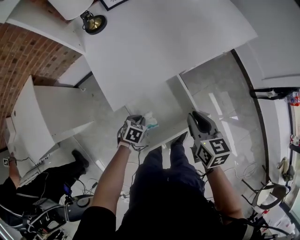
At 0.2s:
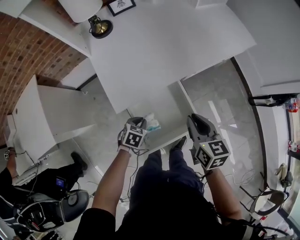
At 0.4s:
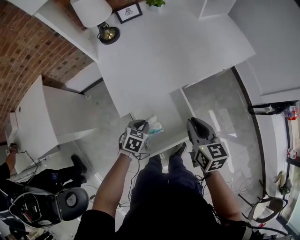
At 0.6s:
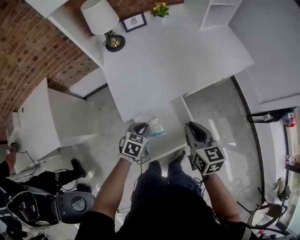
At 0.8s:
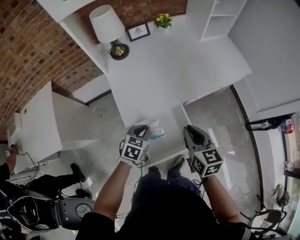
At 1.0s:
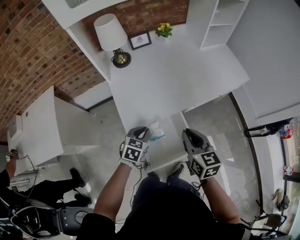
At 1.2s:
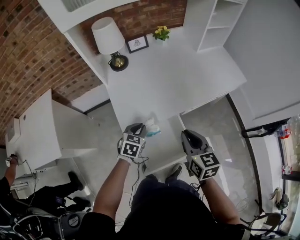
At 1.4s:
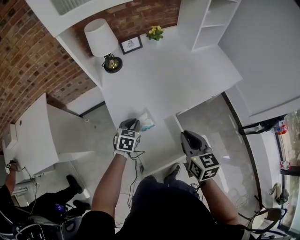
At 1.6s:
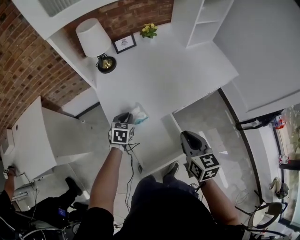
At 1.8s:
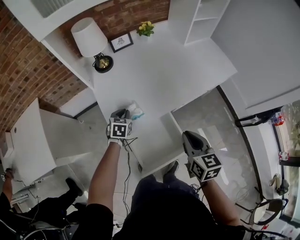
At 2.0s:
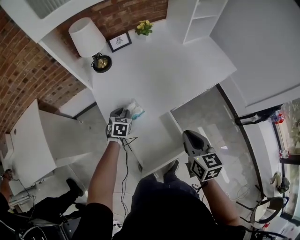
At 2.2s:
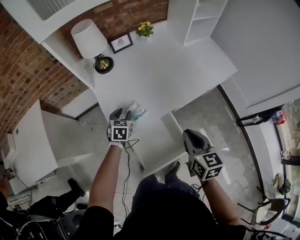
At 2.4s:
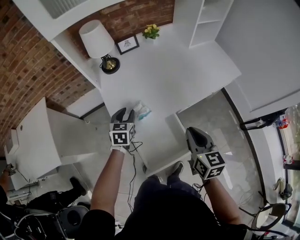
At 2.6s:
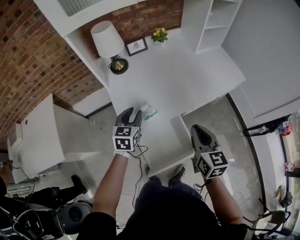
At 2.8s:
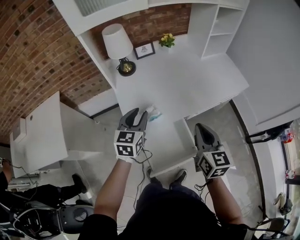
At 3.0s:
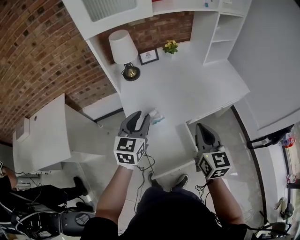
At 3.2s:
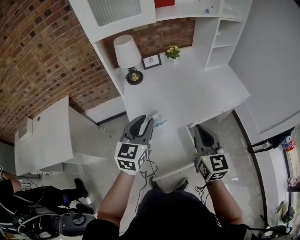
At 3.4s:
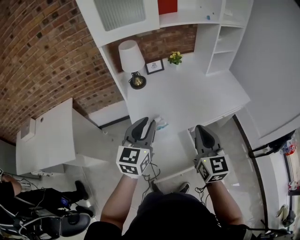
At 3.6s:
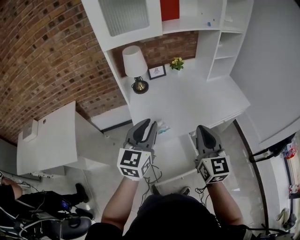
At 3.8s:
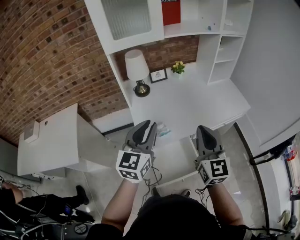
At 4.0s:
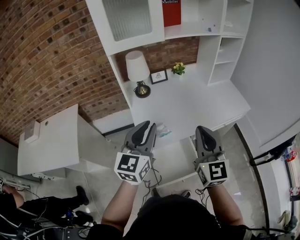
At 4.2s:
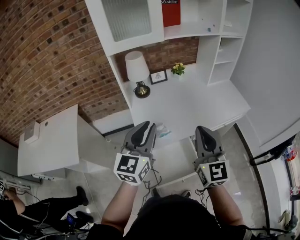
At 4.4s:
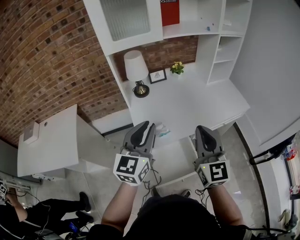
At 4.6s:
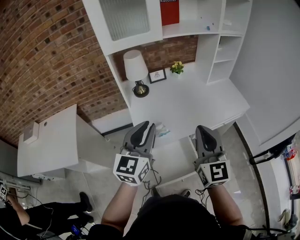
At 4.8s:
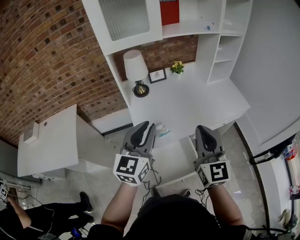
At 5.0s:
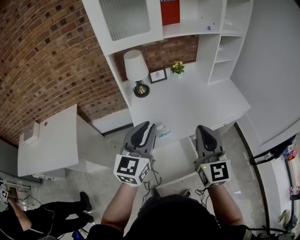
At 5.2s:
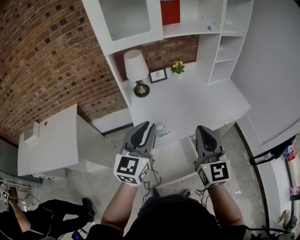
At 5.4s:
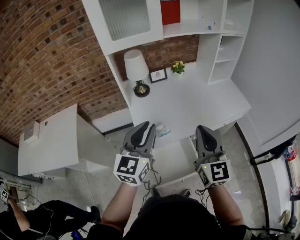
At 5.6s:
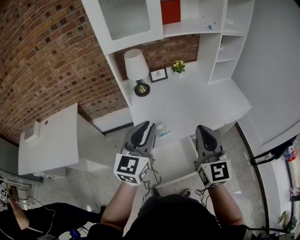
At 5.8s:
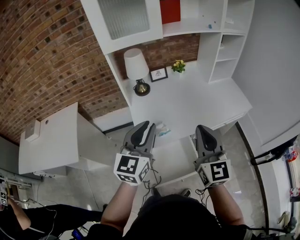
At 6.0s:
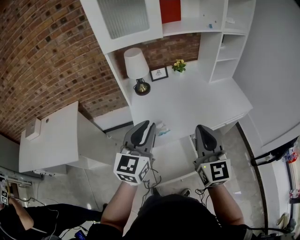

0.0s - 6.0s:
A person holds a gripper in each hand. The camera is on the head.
0.0s - 1.6s: The left gripper goes some 25 cm forward and upward, and swivels about 30 degrees. The right gripper moves upward, roughly 10 cm.
1.6s - 3.0s: The right gripper moves upward, approximately 10 cm; the left gripper heads upward, covering some 25 cm, and rotates some 30 degrees.
3.0s - 4.4s: The right gripper is displaced upward by approximately 10 cm, and swivels approximately 20 degrees. The left gripper moves upward and backward, about 15 cm.
4.4s - 6.0s: The grippers move only a little.

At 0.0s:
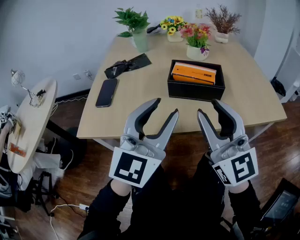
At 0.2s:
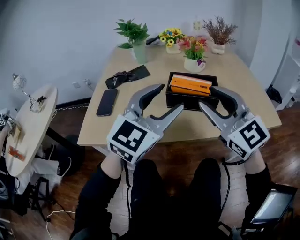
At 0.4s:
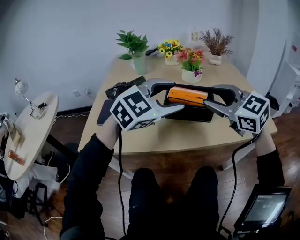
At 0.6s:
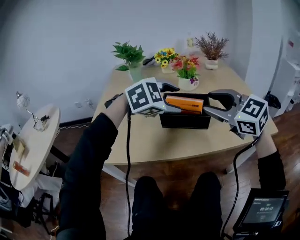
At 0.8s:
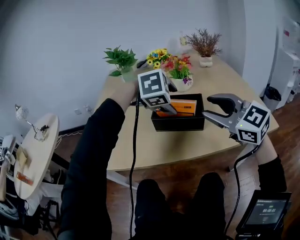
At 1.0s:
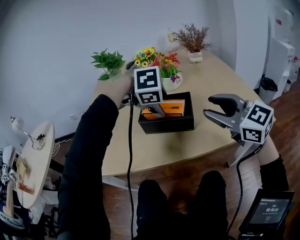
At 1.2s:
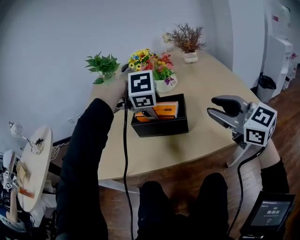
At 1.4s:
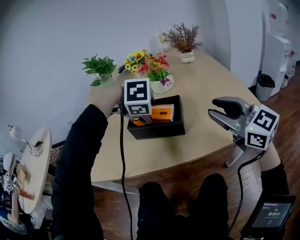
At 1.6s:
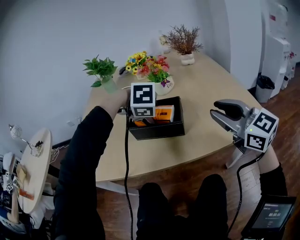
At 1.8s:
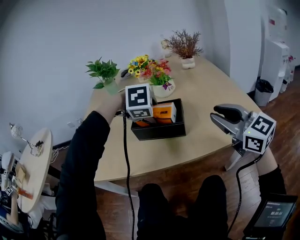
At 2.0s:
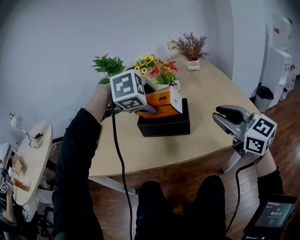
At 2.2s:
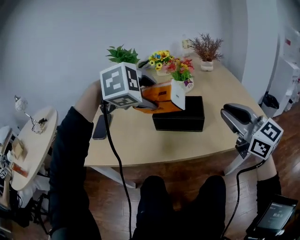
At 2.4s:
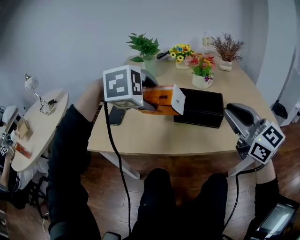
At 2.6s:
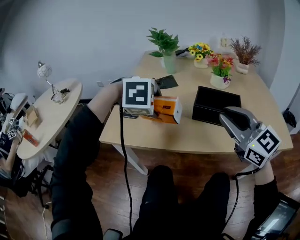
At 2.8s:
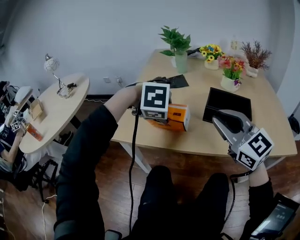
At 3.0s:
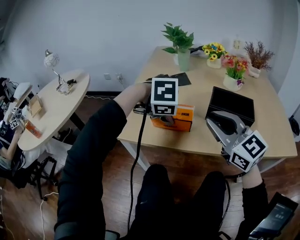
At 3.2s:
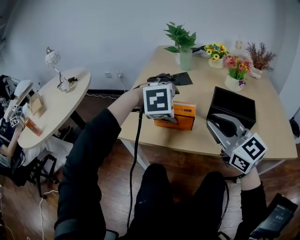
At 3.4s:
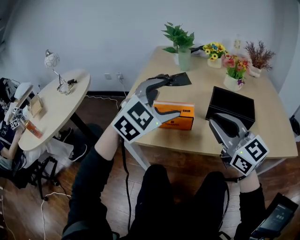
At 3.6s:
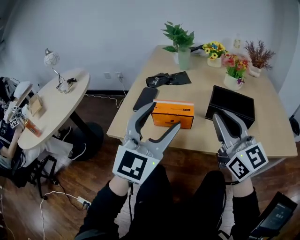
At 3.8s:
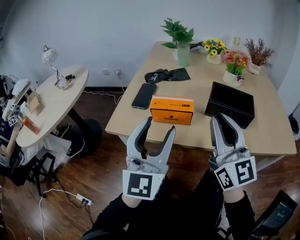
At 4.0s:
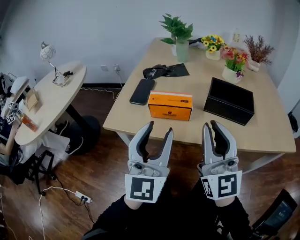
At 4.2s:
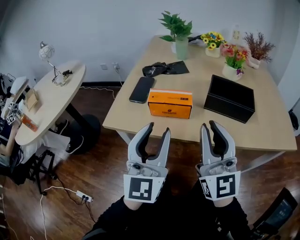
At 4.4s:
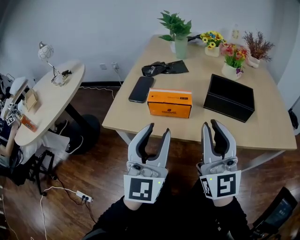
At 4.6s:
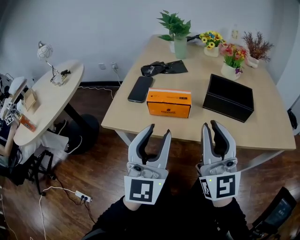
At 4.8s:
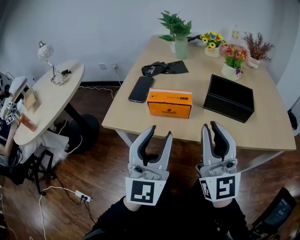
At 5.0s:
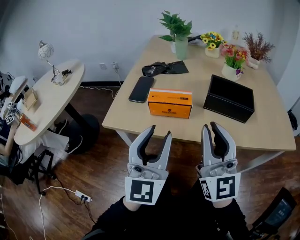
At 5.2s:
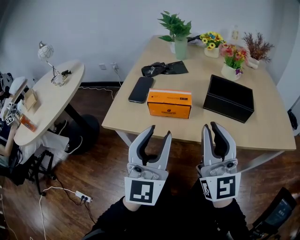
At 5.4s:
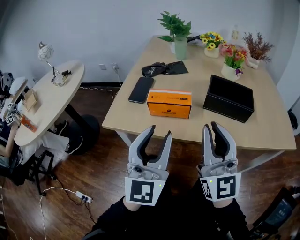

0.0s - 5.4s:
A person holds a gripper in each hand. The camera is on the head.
0.0s - 1.4s: The left gripper moves approximately 20 cm, and points its fingers roughly 90 degrees further downward. The right gripper moves about 20 cm, and swivels some 20 degrees.
1.4s - 2.8s: The right gripper ends up about 25 cm from where it was. The left gripper goes upward and returns, some 10 cm each way.
2.8s - 4.0s: The left gripper shifts by some 15 cm, tips its fingers upward by approximately 90 degrees, and opens, then closes again. The right gripper moves approximately 5 cm, and swivels about 30 degrees.
4.0s - 5.4s: The grippers stay close to where they were, moving slightly.

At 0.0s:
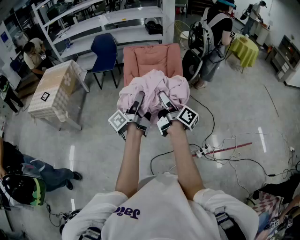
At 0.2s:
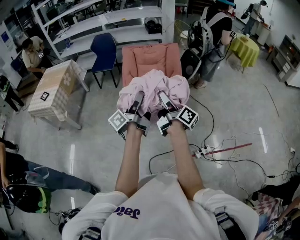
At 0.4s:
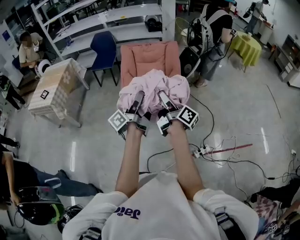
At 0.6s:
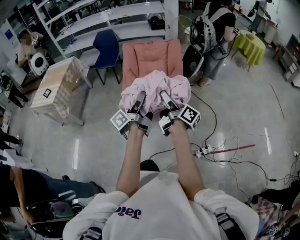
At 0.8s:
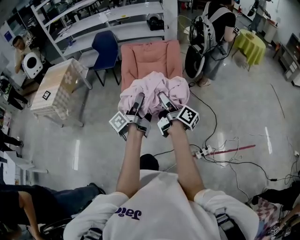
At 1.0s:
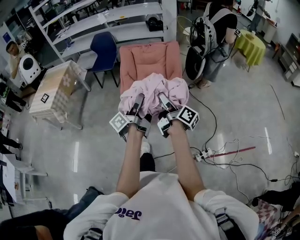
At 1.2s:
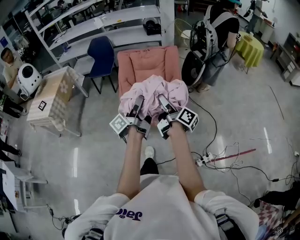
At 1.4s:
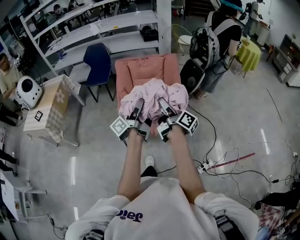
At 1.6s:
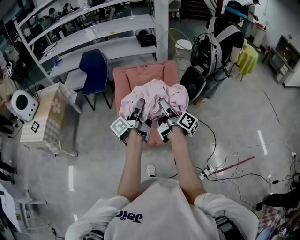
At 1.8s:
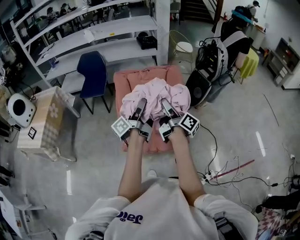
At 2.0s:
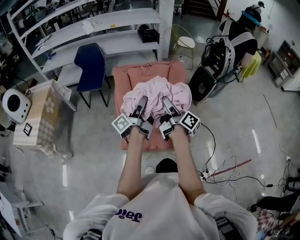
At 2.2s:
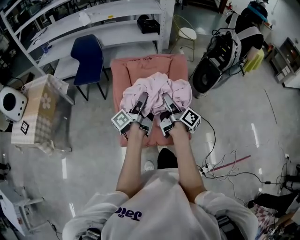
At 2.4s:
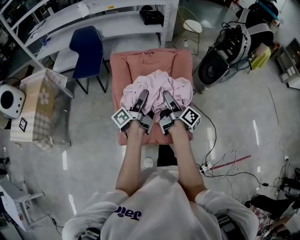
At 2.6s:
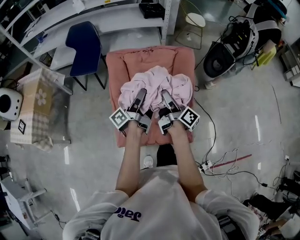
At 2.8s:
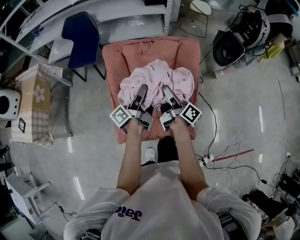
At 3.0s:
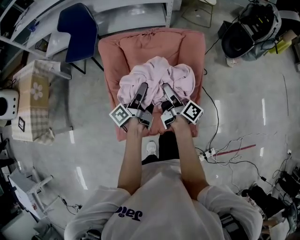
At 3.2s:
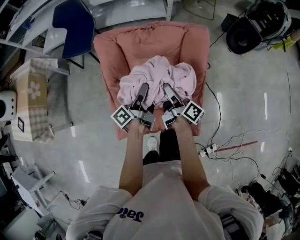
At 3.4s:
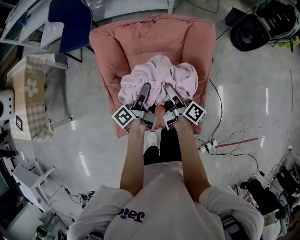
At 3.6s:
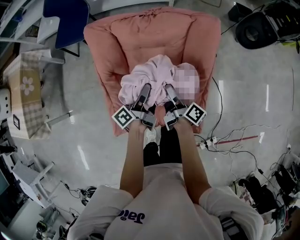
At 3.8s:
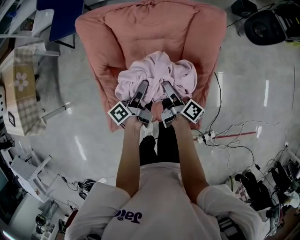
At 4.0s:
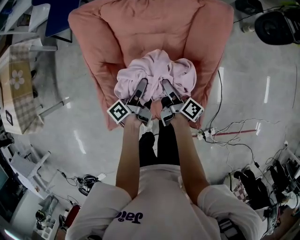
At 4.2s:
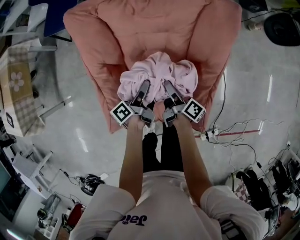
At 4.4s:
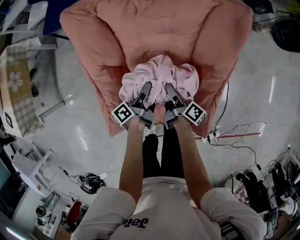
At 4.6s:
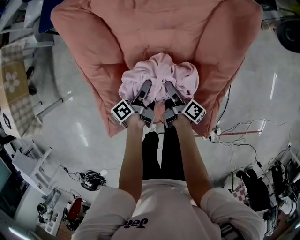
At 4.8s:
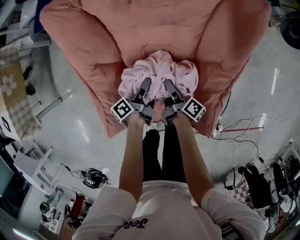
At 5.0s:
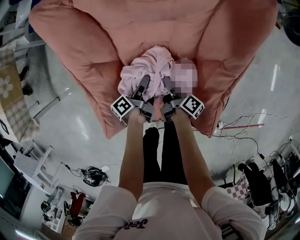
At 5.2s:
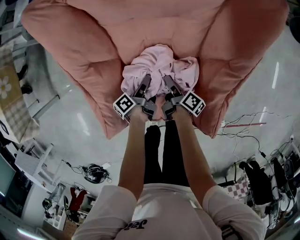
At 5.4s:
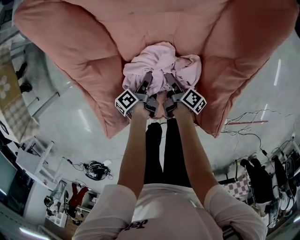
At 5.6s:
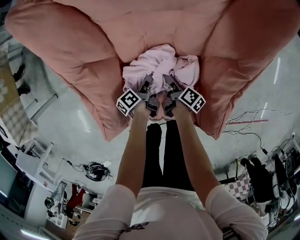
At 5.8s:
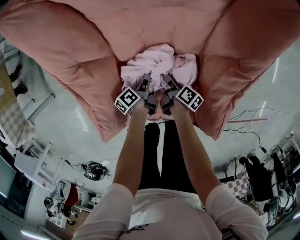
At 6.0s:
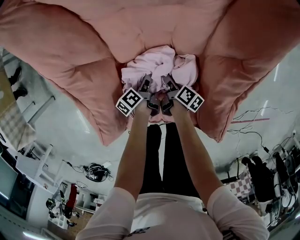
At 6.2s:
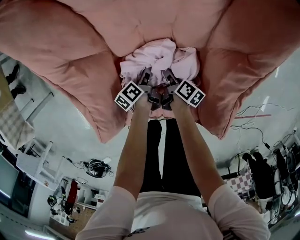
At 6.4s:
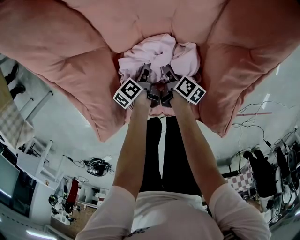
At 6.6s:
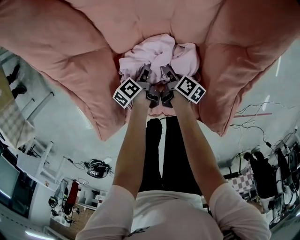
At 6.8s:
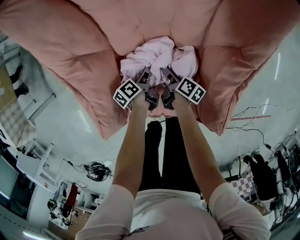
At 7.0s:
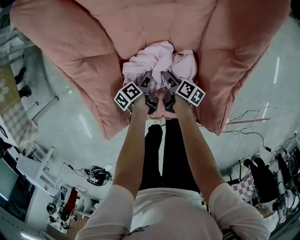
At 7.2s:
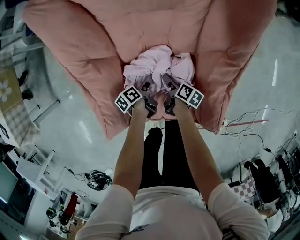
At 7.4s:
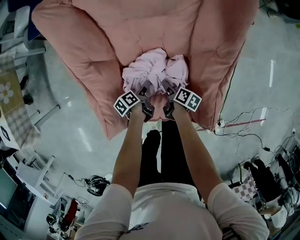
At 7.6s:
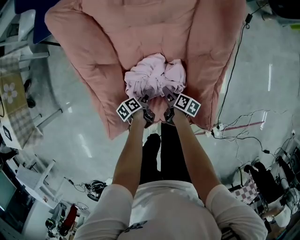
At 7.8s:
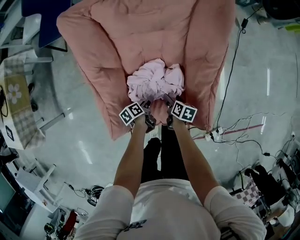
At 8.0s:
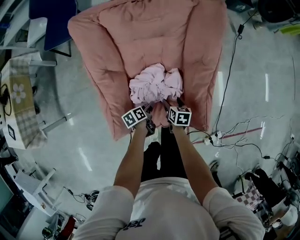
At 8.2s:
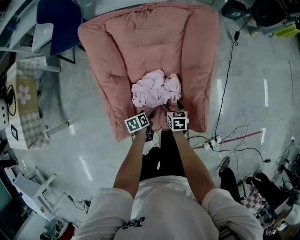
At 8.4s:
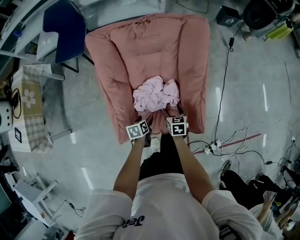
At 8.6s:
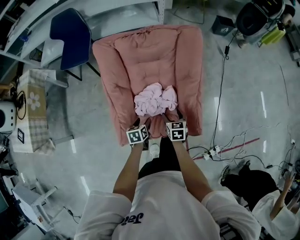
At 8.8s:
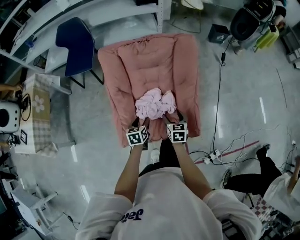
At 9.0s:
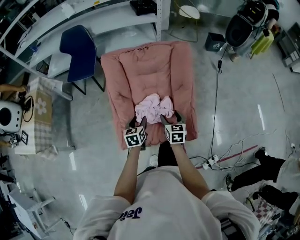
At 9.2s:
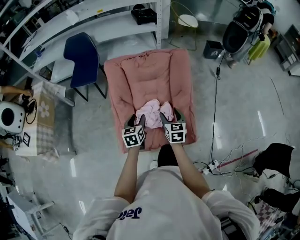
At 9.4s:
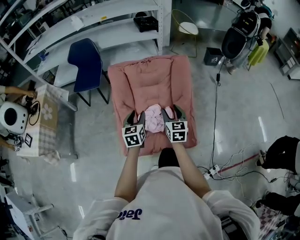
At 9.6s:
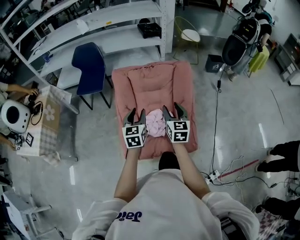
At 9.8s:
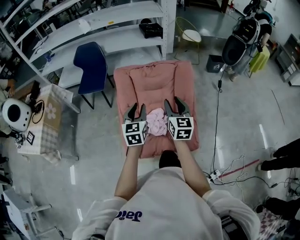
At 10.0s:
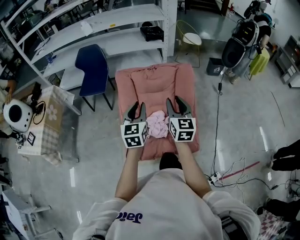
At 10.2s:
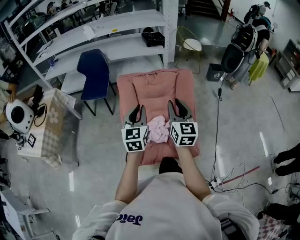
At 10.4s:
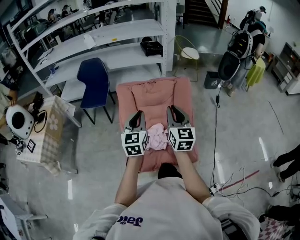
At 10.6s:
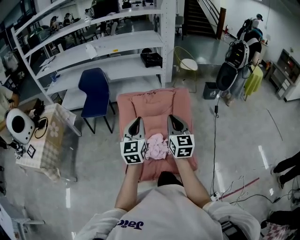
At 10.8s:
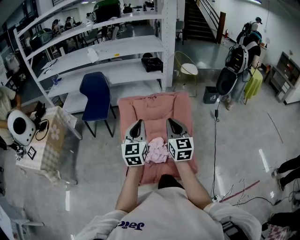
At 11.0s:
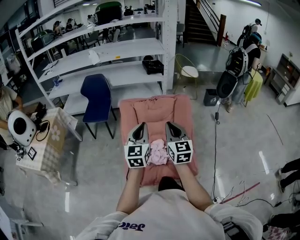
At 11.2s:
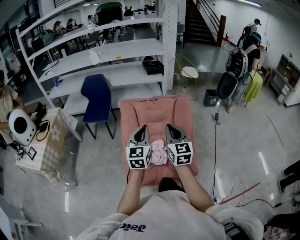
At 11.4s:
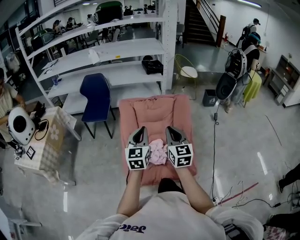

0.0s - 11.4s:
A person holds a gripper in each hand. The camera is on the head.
0.0s - 1.4s: The right gripper shifts by roughly 20 cm.
1.4s - 2.8s: The right gripper changes place by roughly 40 cm.
2.8s - 4.2s: The right gripper travels downward by about 25 cm, and changes its angle by roughly 20 degrees.
4.2s - 5.6s: The right gripper moves downward, some 25 cm, and swivels some 20 degrees.
7.2s - 8.6s: The right gripper shifts some 25 cm upward, and twists approximately 60 degrees counterclockwise, seen from behind.
8.6s - 10.0s: The right gripper travels upward by approximately 40 cm, angles its fingers upward, by roughly 40 degrees, and closes up.
10.0s - 11.4s: The right gripper changes place by approximately 5 cm, and closes up.

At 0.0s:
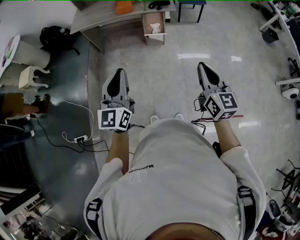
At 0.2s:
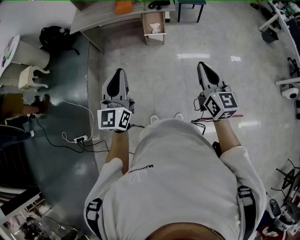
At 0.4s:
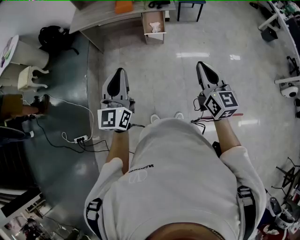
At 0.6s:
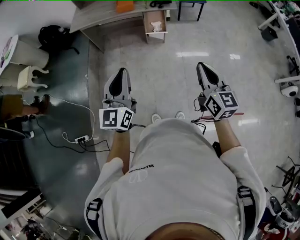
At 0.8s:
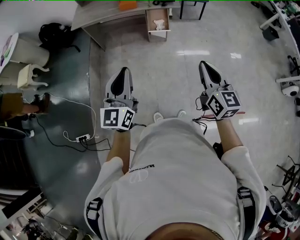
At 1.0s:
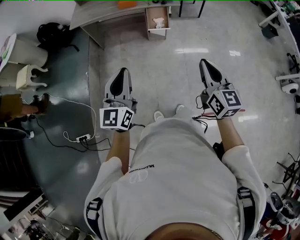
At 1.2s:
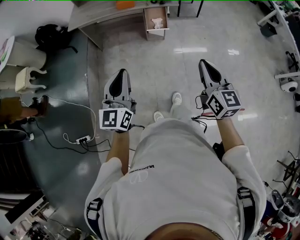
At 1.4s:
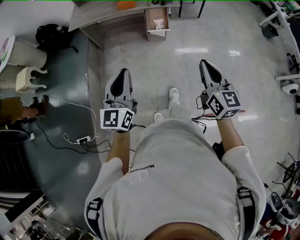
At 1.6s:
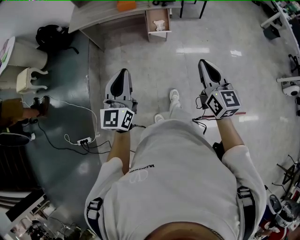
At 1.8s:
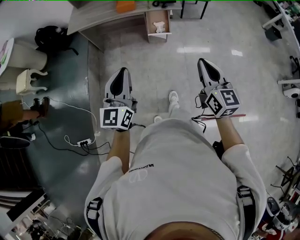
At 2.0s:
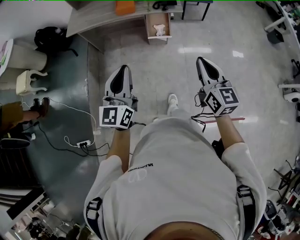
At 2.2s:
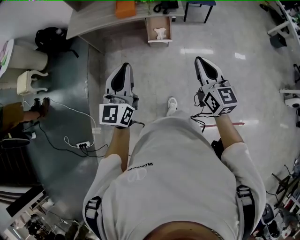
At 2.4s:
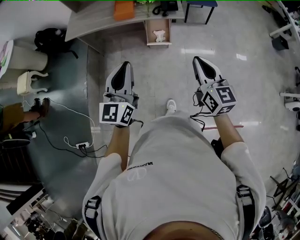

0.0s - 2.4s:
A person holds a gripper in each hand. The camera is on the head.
0.0s - 1.2s: Both grippers move to the left, some 5 cm.
1.2s - 2.4s: The right gripper heads forward, covering approximately 25 cm. The left gripper goes approximately 25 cm forward and to the right.
